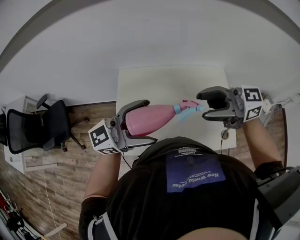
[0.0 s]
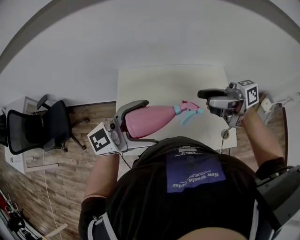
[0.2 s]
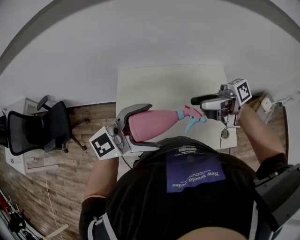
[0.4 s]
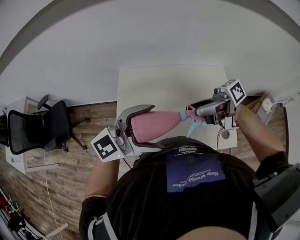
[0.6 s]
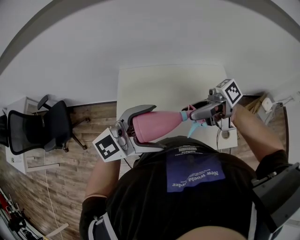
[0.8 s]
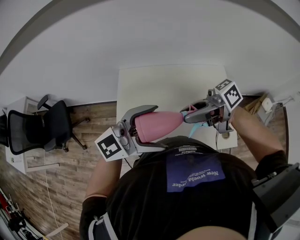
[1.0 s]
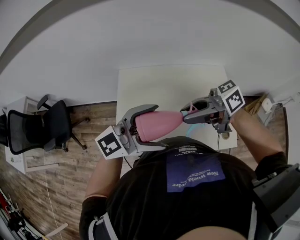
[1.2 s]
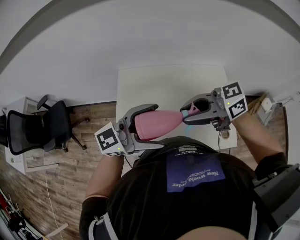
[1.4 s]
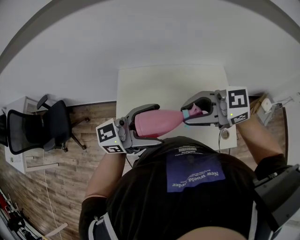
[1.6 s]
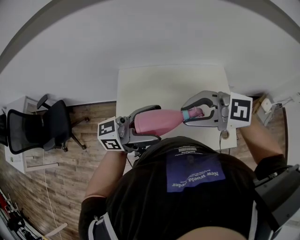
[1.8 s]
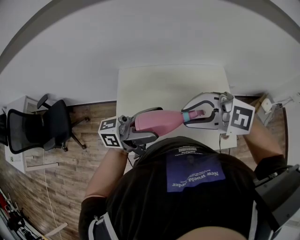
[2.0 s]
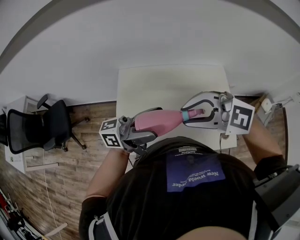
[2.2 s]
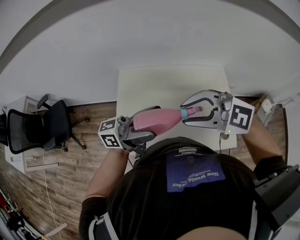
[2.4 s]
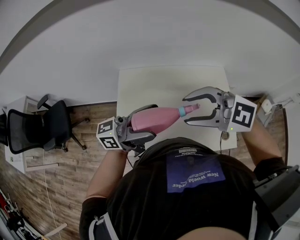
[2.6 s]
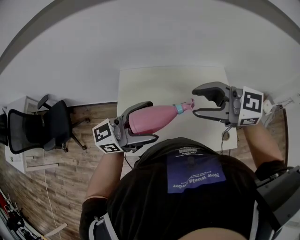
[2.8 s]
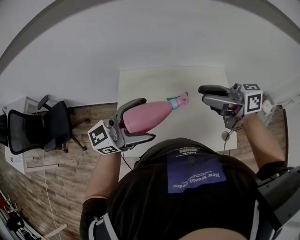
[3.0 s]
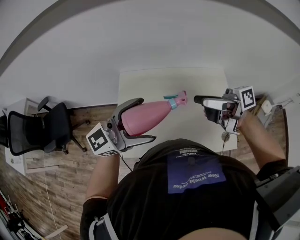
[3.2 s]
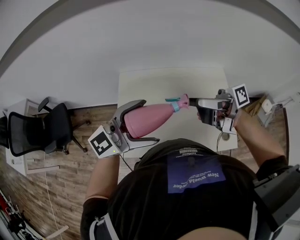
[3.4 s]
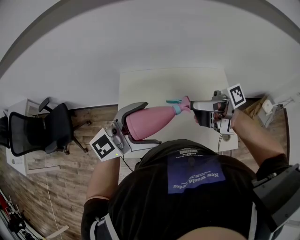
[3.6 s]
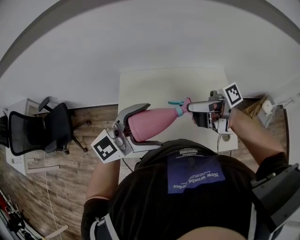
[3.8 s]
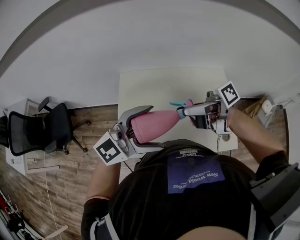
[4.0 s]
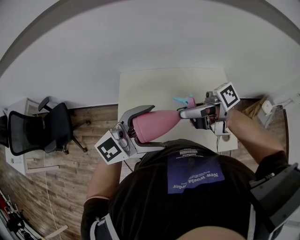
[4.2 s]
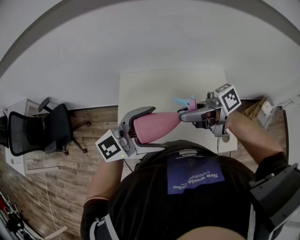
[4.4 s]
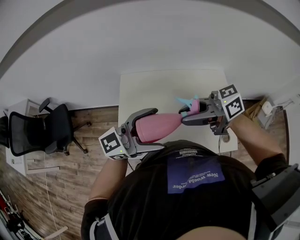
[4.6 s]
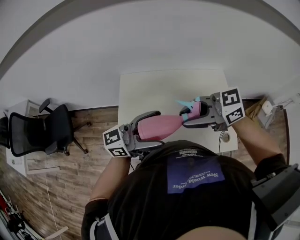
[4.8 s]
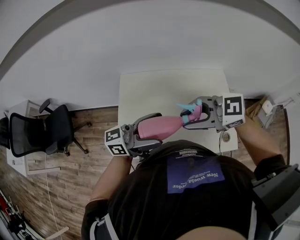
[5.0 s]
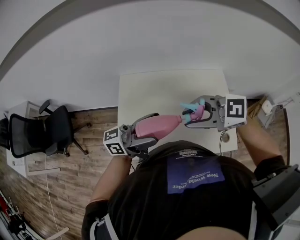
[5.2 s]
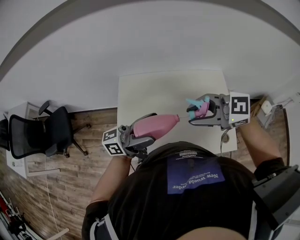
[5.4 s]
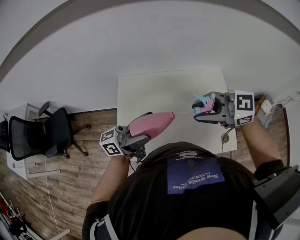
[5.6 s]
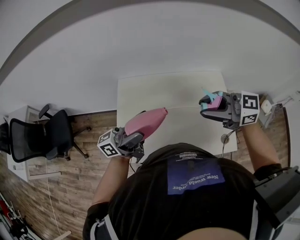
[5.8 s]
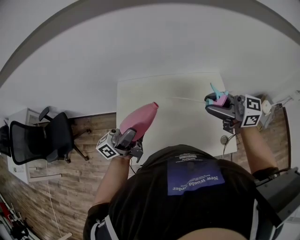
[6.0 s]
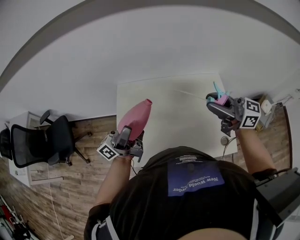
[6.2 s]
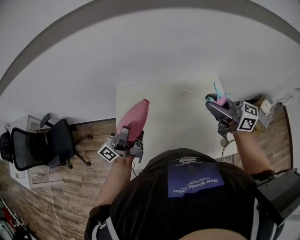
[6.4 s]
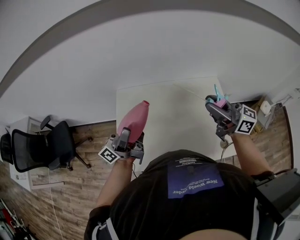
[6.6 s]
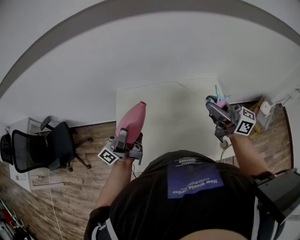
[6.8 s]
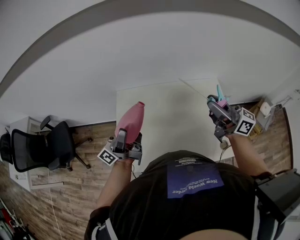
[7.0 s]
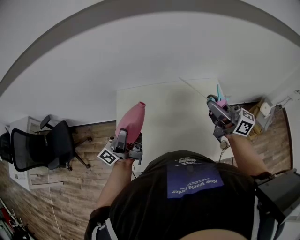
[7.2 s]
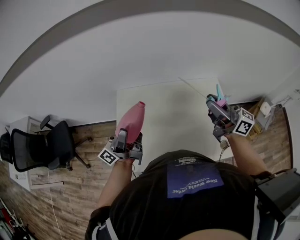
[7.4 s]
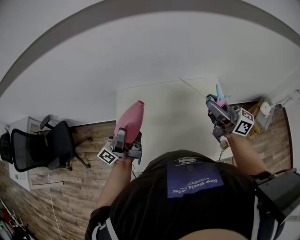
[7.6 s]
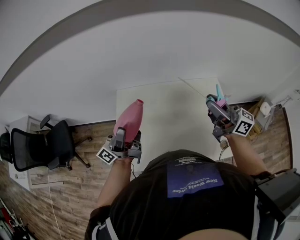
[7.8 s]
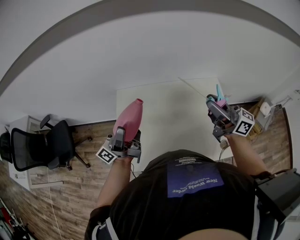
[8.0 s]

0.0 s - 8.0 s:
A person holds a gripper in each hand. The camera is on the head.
0.0 s - 1.6 s: The right gripper shifts by about 5 cm, and closes its fingers.
1.6 s - 3.2 s: The right gripper shifts by about 10 cm, rotates around the line of its fingers by some 50 degrees, clockwise from behind, and opens up.
3.2 s - 4.8 s: The right gripper shifts by about 10 cm, swivels roughly 50 degrees, and closes, while the left gripper changes its angle by some 20 degrees.
4.8 s - 6.4 s: The left gripper moves about 10 cm, and rotates some 40 degrees. The right gripper changes place by roughly 15 cm, and turns by roughly 40 degrees.
6.4 s - 8.0 s: The grippers stay close to where they were, moving slightly.

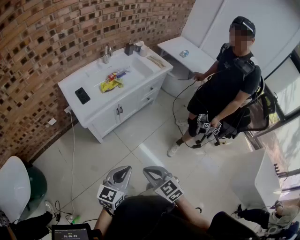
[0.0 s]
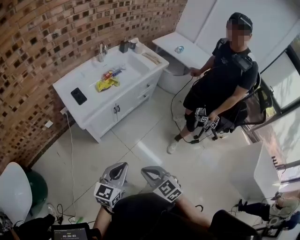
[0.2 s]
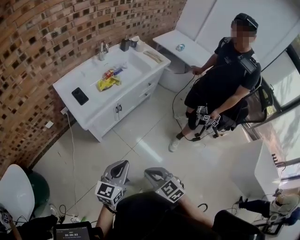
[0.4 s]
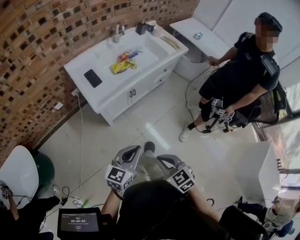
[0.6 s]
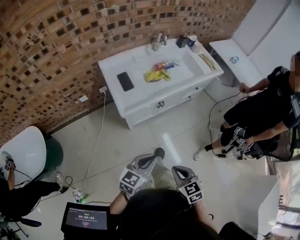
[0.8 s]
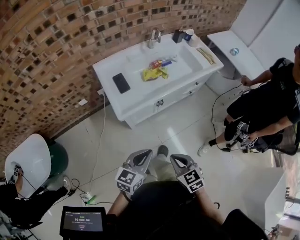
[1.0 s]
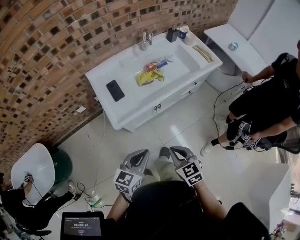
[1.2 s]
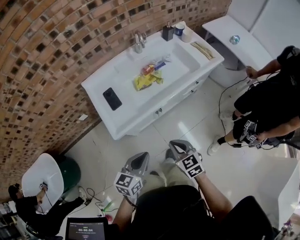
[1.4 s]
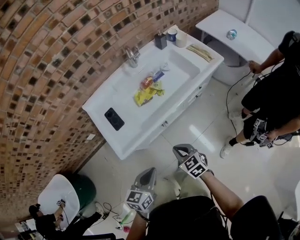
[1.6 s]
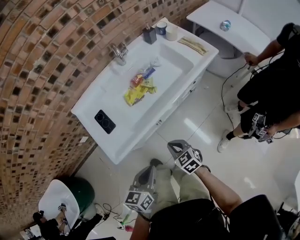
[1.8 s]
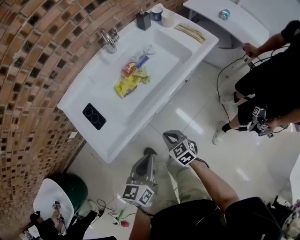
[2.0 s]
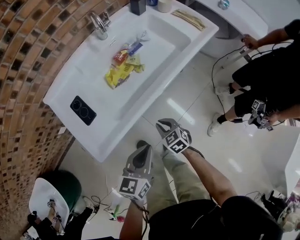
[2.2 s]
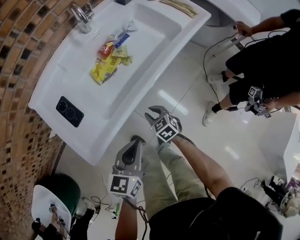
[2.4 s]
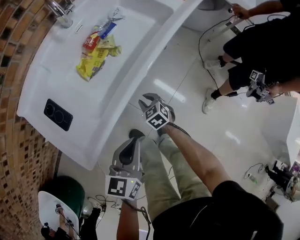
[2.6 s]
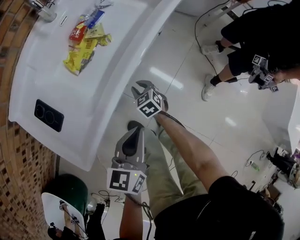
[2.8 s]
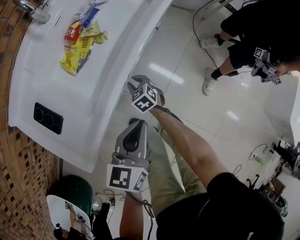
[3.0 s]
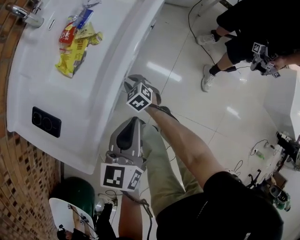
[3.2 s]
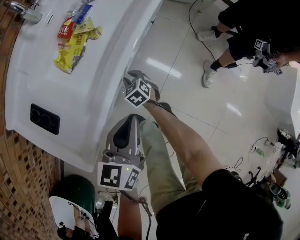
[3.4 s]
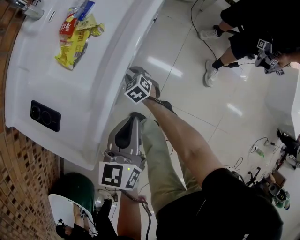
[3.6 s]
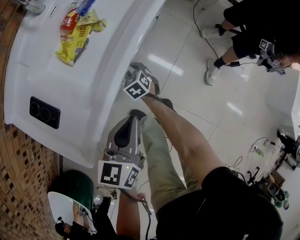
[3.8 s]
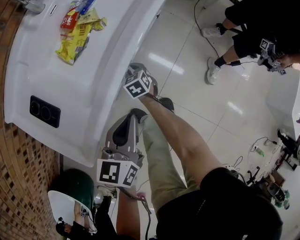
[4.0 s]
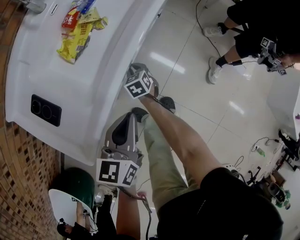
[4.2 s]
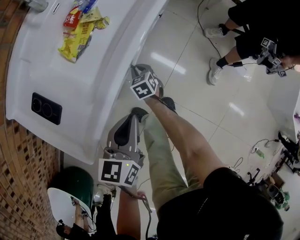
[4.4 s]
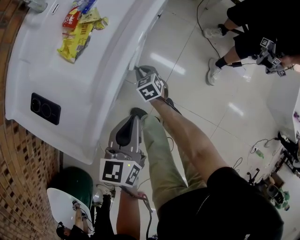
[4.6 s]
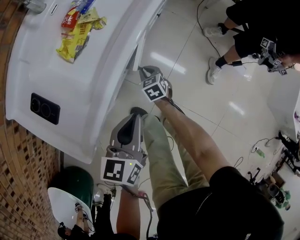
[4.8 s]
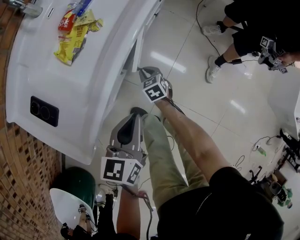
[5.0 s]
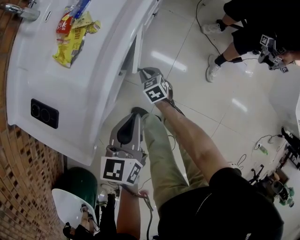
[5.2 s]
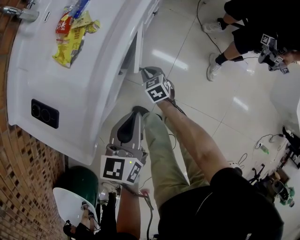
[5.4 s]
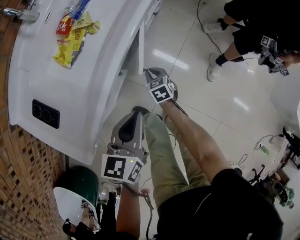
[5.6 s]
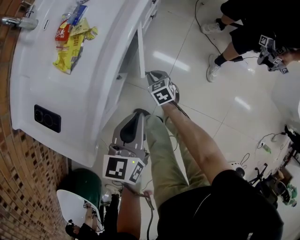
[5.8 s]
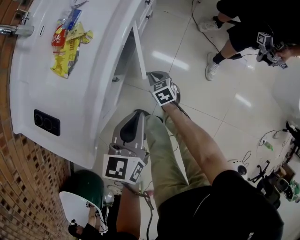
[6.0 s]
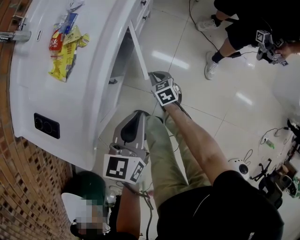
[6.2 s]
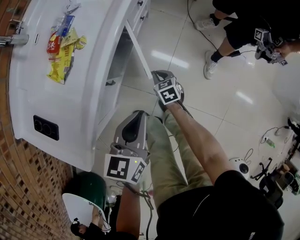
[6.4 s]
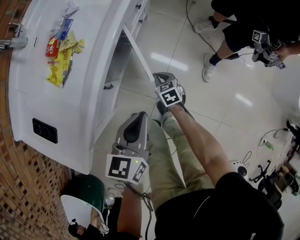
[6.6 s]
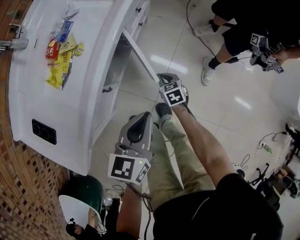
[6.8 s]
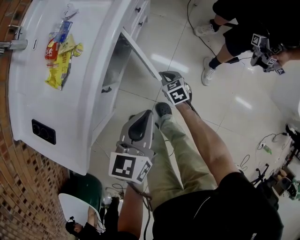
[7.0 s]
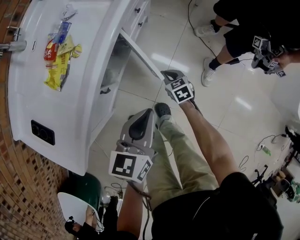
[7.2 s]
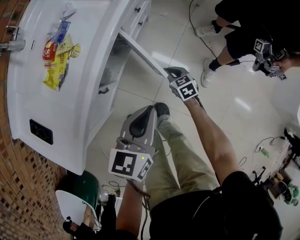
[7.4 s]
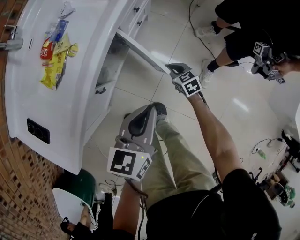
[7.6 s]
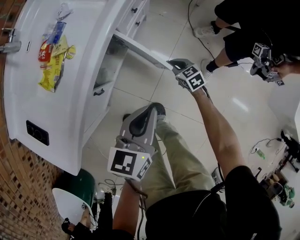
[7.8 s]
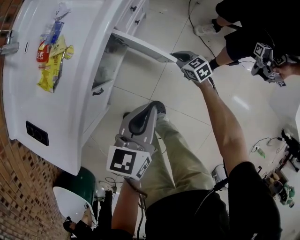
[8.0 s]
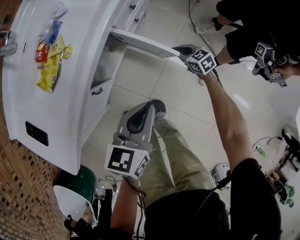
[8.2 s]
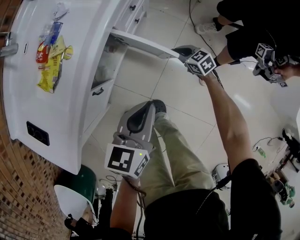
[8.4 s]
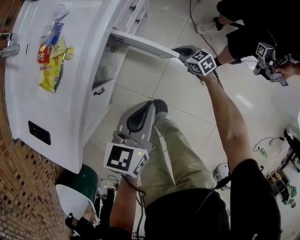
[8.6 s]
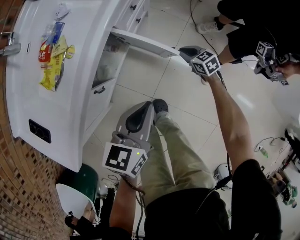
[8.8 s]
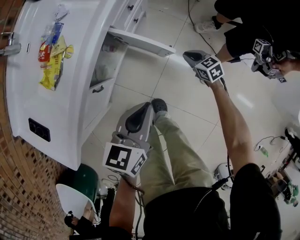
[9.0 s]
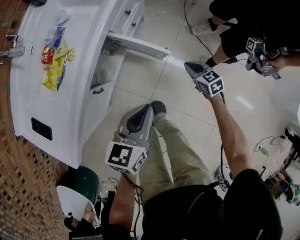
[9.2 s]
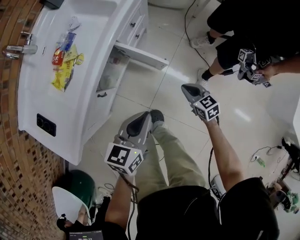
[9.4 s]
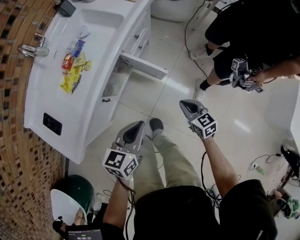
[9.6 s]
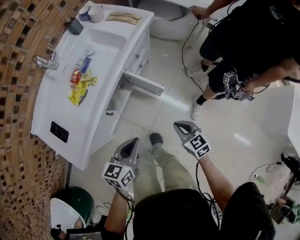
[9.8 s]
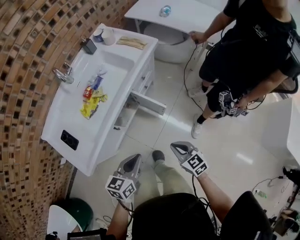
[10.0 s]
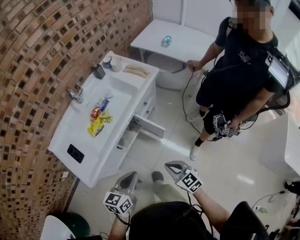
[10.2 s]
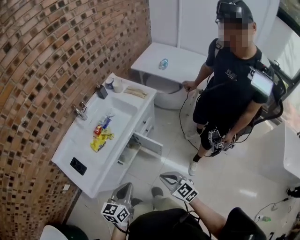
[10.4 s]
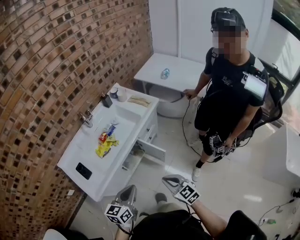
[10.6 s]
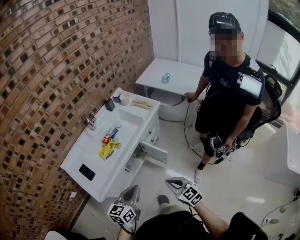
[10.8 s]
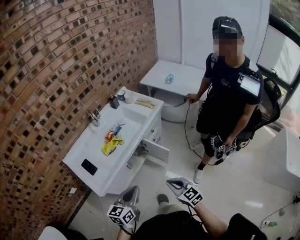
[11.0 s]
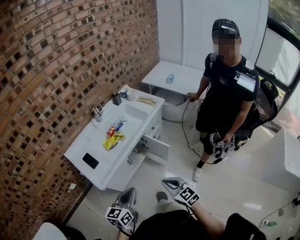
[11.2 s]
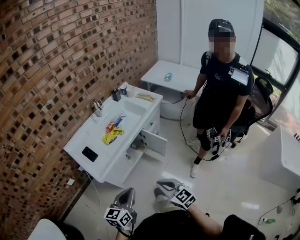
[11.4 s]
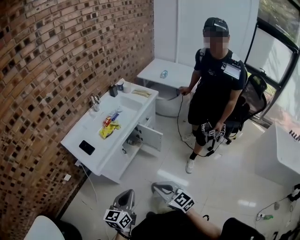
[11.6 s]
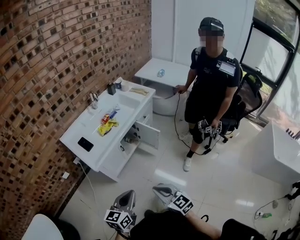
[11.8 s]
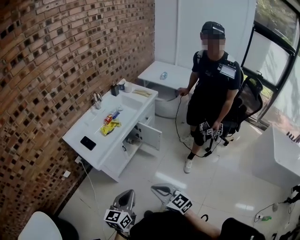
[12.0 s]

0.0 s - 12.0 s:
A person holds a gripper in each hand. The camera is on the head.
0.0 s - 1.6 s: The right gripper heads forward and downward, covering roughly 40 cm, while the left gripper moves forward, some 30 cm, and changes its angle by approximately 20 degrees.
1.6 s - 3.0 s: The right gripper shifts about 35 cm downward and forward, and swivels some 30 degrees. Meanwhile the left gripper travels downward and forward by approximately 20 cm.
3.0 s - 4.4 s: The left gripper ends up some 5 cm from where it was.
4.4 s - 6.0 s: The right gripper goes roughly 10 cm to the right; the left gripper heads to the right, covering roughly 10 cm.
6.0 s - 7.6 s: The grippers both shift to the right and forward by about 15 cm.
7.6 s - 9.0 s: The right gripper goes some 10 cm to the right.
9.0 s - 10.4 s: The right gripper moves upward and backward, approximately 50 cm, and swivels some 30 degrees, while the left gripper heads upward and backward, covering about 25 cm.
10.4 s - 12.0 s: The left gripper is displaced backward by about 30 cm, while the right gripper is displaced backward and to the left by roughly 35 cm.

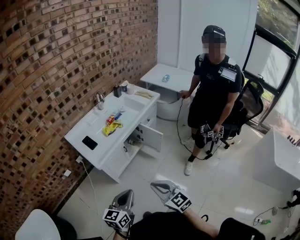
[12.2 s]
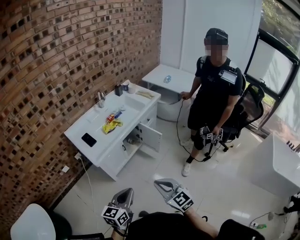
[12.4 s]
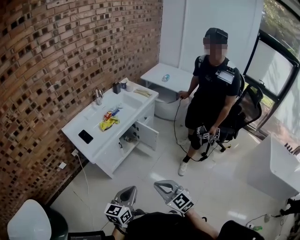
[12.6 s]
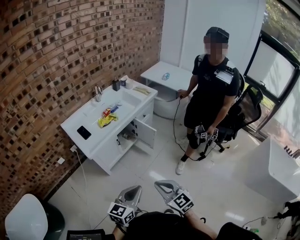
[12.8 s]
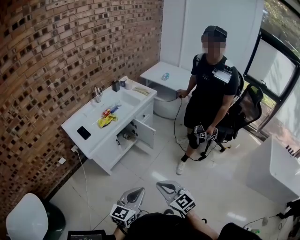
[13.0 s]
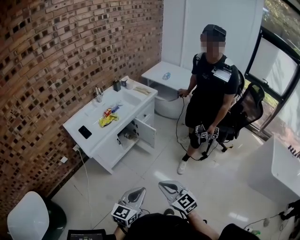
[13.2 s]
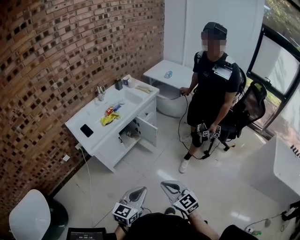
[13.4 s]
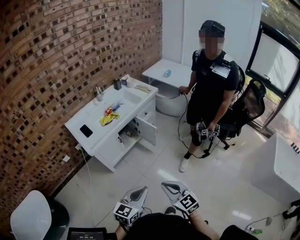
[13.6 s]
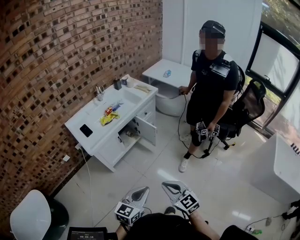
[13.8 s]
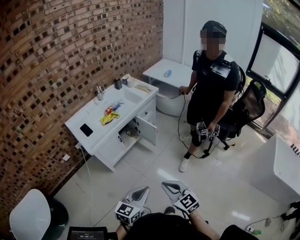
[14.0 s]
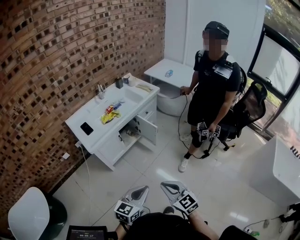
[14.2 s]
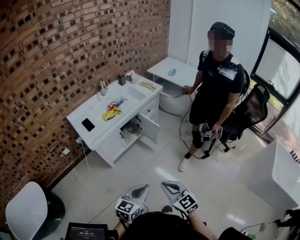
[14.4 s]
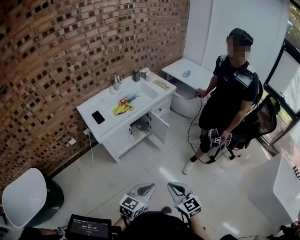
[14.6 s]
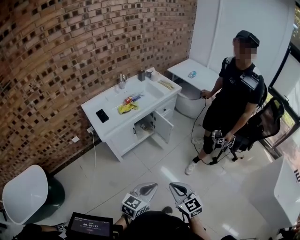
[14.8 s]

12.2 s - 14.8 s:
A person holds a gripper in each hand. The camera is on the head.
12.2 s - 13.4 s: The grippers both shift to the right and backward by some 20 cm.
13.4 s - 14.8 s: The grippers make only small movements.

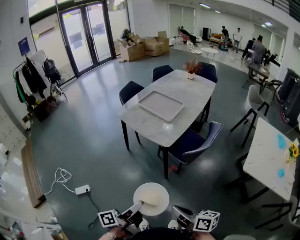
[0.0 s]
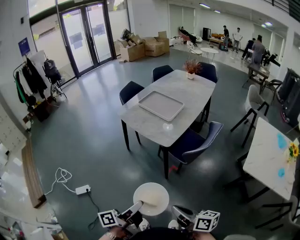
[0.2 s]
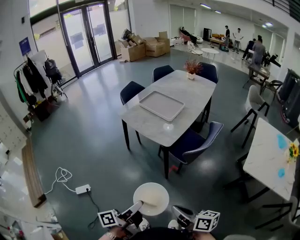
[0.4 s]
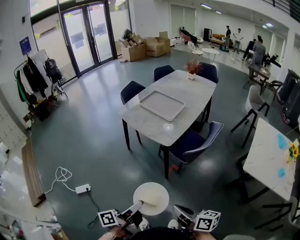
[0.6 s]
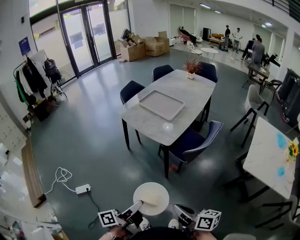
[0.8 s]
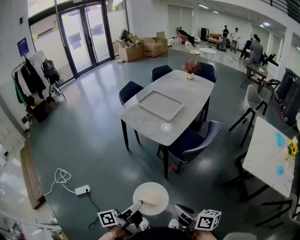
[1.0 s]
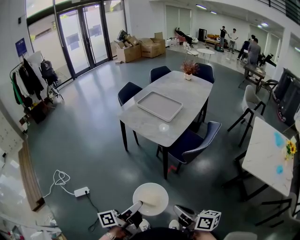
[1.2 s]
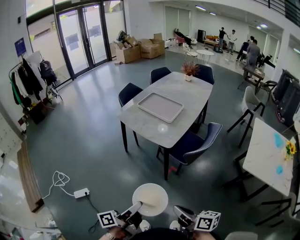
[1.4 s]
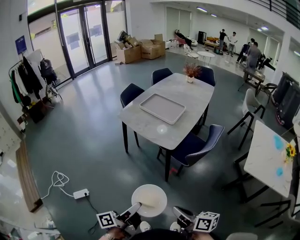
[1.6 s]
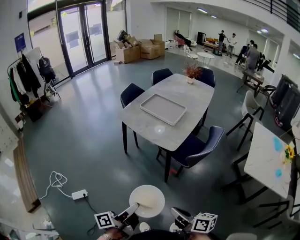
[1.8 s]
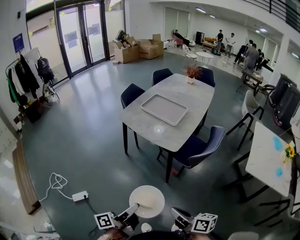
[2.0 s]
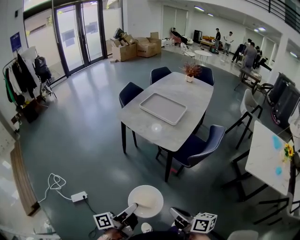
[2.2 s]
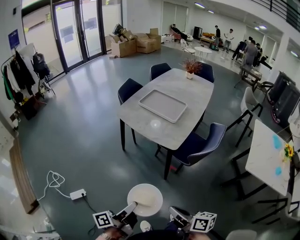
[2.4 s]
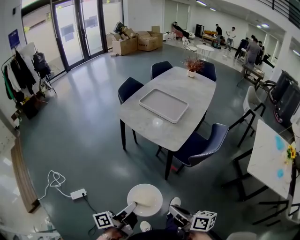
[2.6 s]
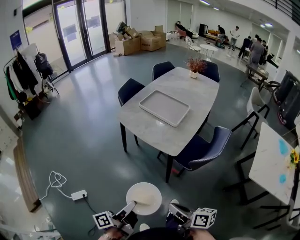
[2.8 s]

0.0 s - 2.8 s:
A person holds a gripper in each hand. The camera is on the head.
1.4 s - 2.8 s: The right gripper changes place by approximately 15 cm.
